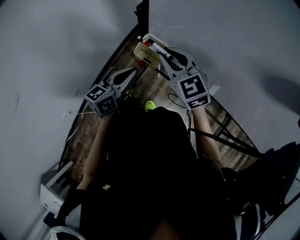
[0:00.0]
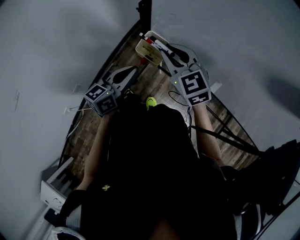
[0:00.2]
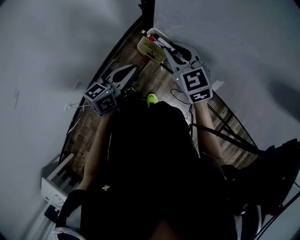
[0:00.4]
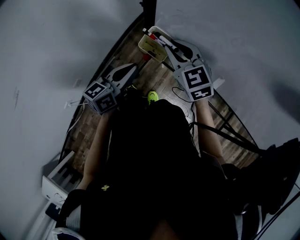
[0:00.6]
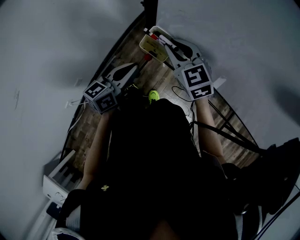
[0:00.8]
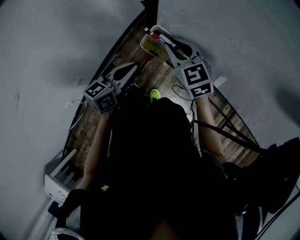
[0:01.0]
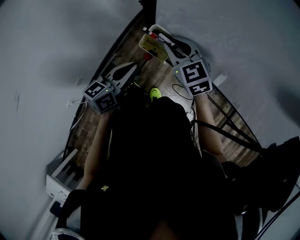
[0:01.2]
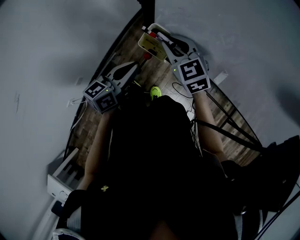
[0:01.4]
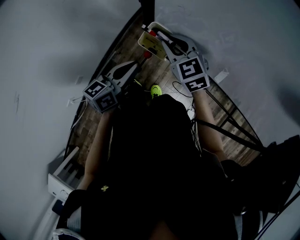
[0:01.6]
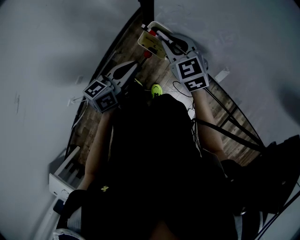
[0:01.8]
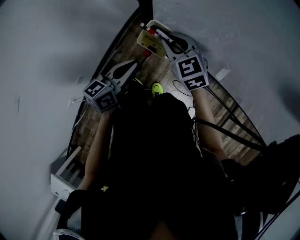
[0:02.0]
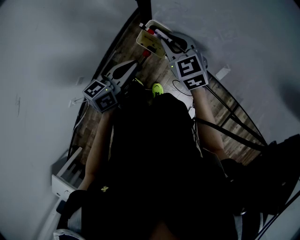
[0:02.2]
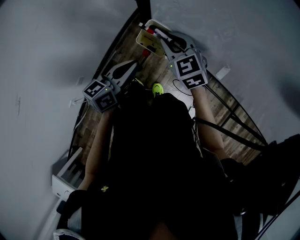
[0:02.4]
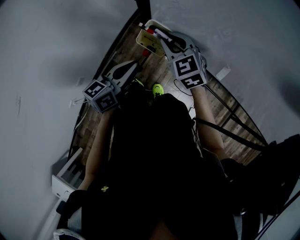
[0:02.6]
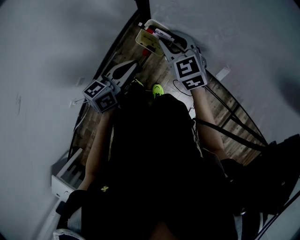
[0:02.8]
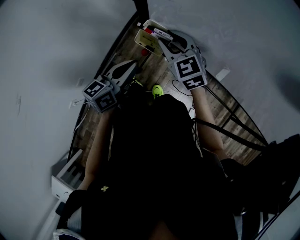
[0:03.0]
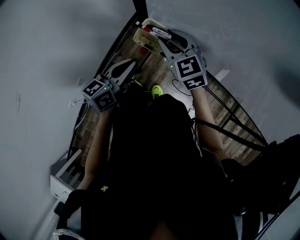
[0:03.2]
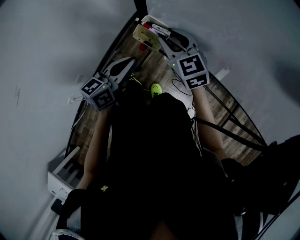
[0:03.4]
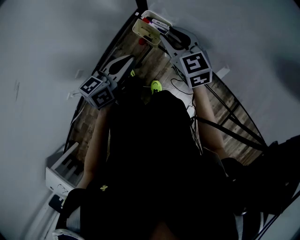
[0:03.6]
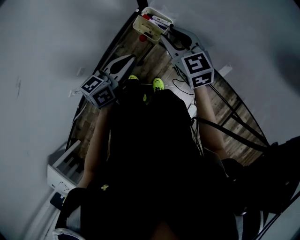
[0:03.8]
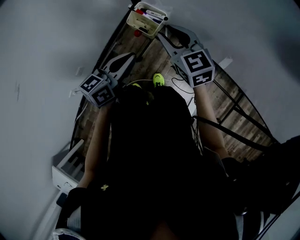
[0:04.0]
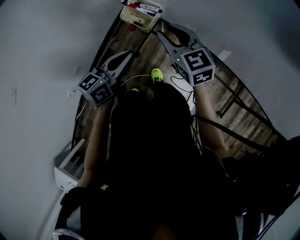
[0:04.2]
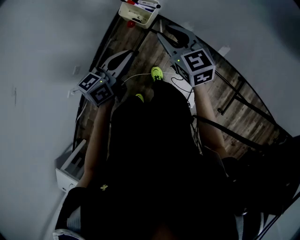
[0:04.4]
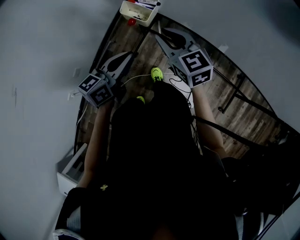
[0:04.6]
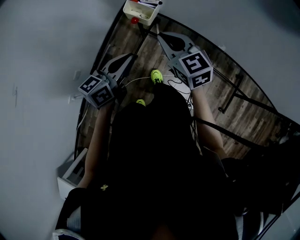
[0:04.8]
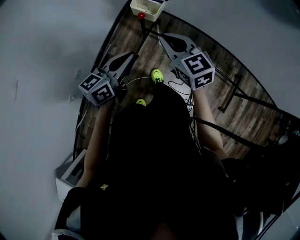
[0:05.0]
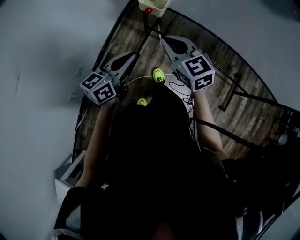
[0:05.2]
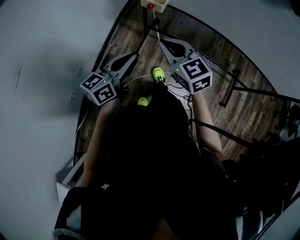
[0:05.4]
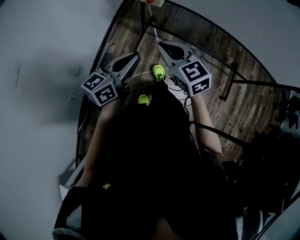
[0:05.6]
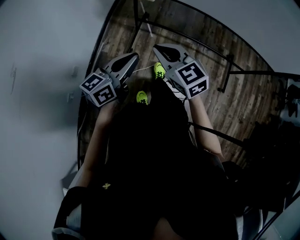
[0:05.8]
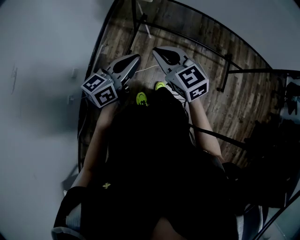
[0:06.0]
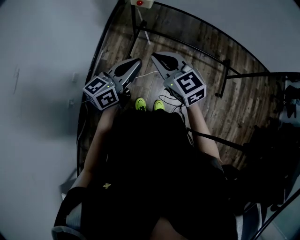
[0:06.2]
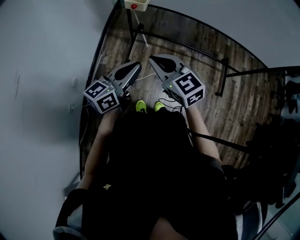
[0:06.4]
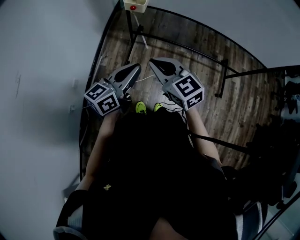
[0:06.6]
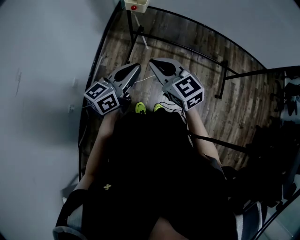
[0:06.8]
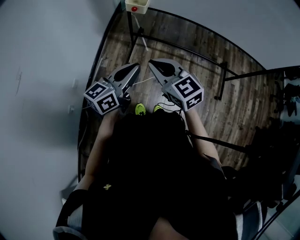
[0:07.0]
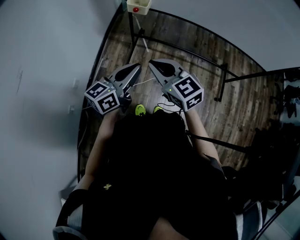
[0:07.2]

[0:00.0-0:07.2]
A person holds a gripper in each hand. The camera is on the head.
0:00.0 to 0:01.4: The right gripper moves some 5 cm.
0:01.4 to 0:02.8: The grippers move only a little.
0:02.8 to 0:04.4: The right gripper is displaced backward and to the right by about 10 cm; the left gripper heads backward, covering approximately 5 cm.
0:04.4 to 0:05.8: Both grippers move backward, roughly 25 cm. The right gripper closes its fingers.
0:05.8 to 0:07.2: The right gripper heads backward, covering approximately 5 cm.

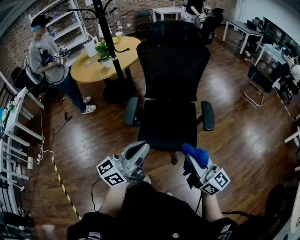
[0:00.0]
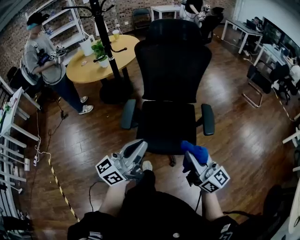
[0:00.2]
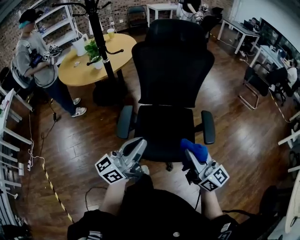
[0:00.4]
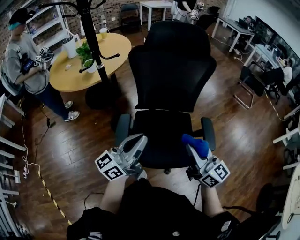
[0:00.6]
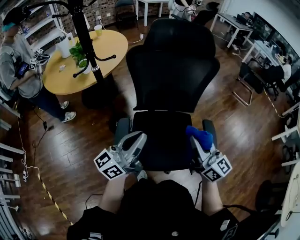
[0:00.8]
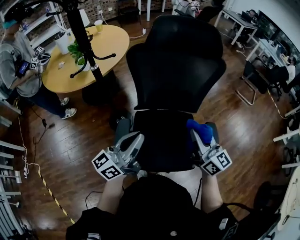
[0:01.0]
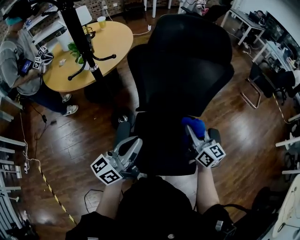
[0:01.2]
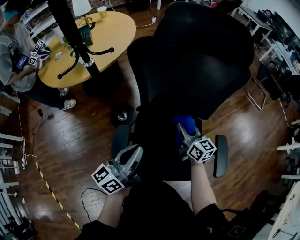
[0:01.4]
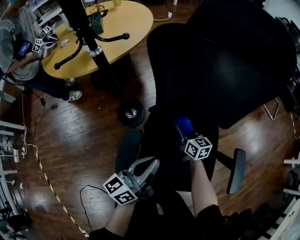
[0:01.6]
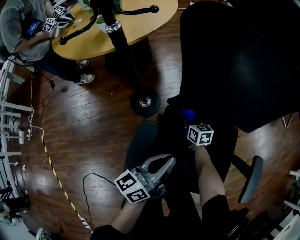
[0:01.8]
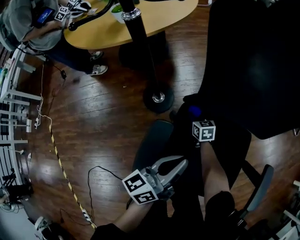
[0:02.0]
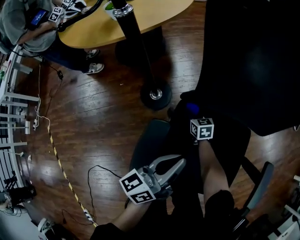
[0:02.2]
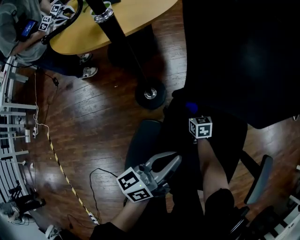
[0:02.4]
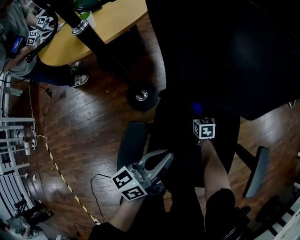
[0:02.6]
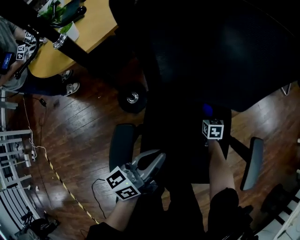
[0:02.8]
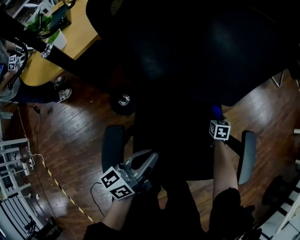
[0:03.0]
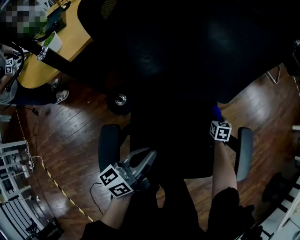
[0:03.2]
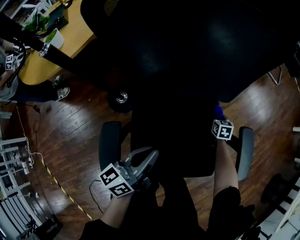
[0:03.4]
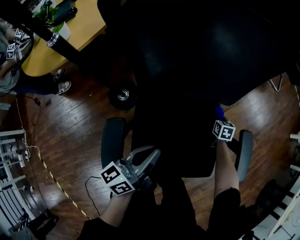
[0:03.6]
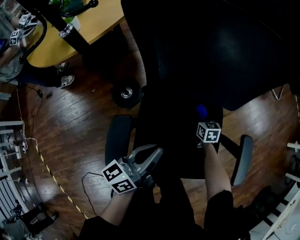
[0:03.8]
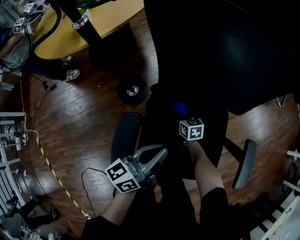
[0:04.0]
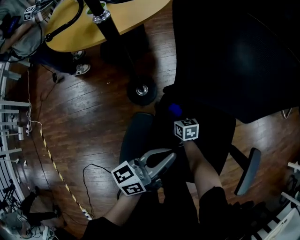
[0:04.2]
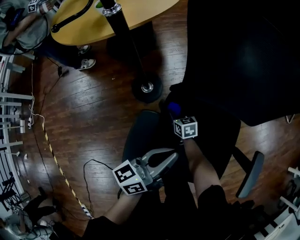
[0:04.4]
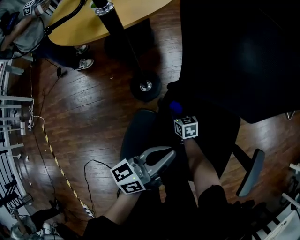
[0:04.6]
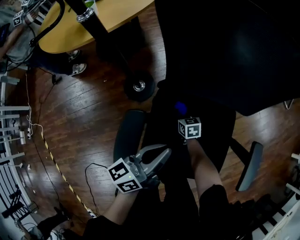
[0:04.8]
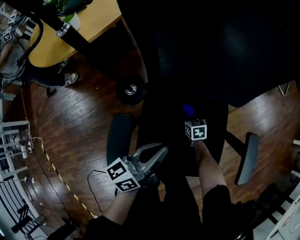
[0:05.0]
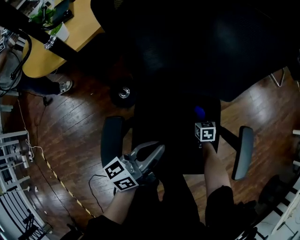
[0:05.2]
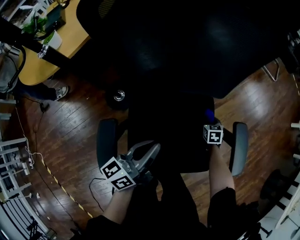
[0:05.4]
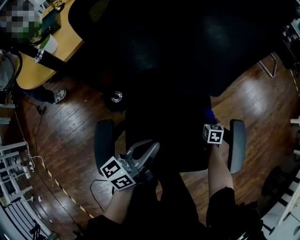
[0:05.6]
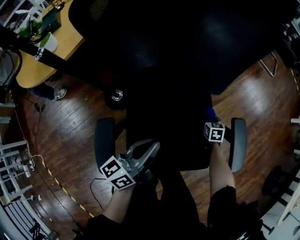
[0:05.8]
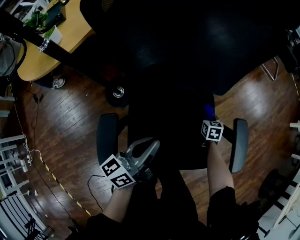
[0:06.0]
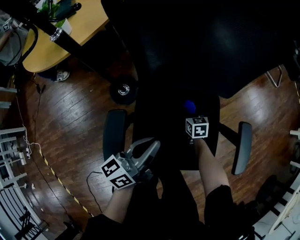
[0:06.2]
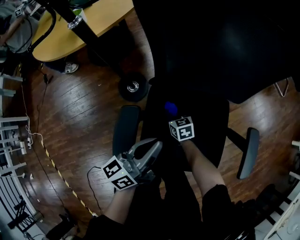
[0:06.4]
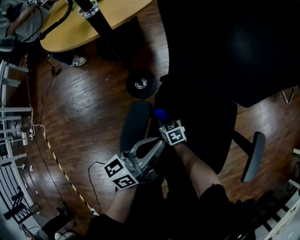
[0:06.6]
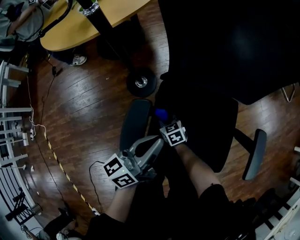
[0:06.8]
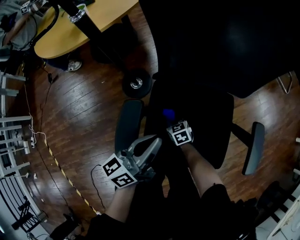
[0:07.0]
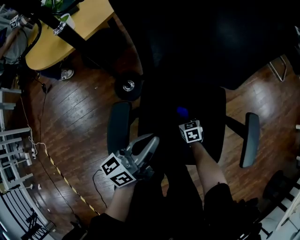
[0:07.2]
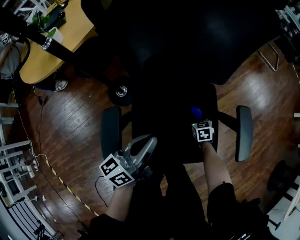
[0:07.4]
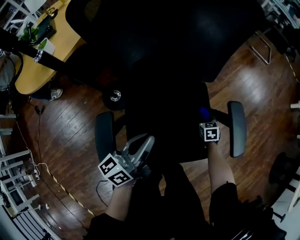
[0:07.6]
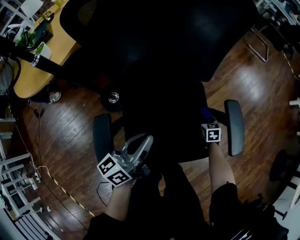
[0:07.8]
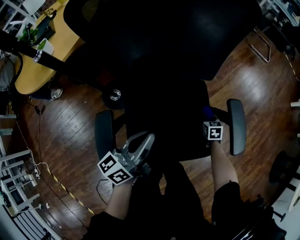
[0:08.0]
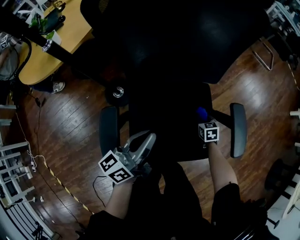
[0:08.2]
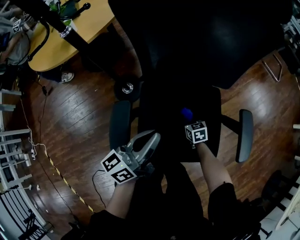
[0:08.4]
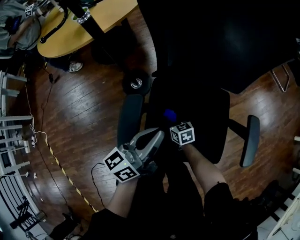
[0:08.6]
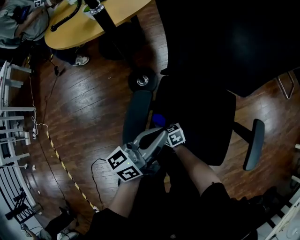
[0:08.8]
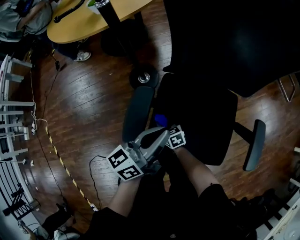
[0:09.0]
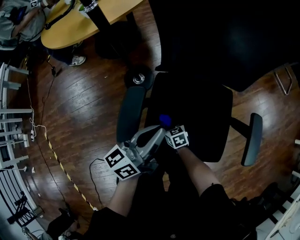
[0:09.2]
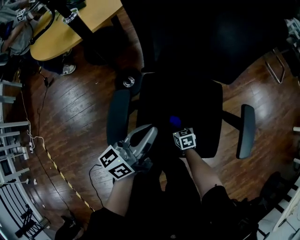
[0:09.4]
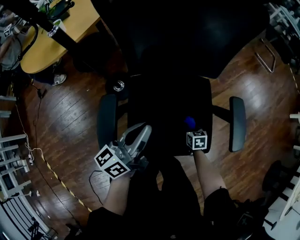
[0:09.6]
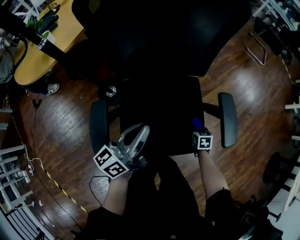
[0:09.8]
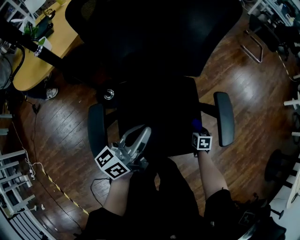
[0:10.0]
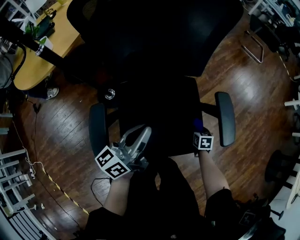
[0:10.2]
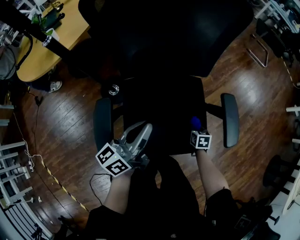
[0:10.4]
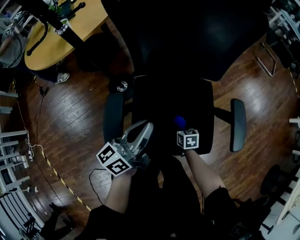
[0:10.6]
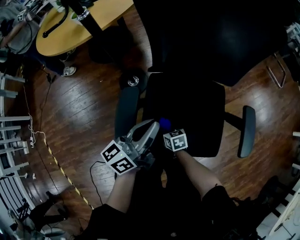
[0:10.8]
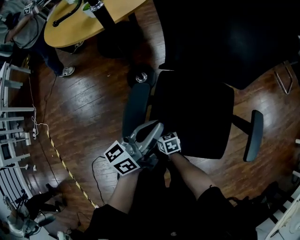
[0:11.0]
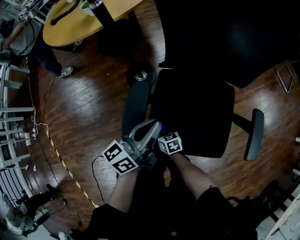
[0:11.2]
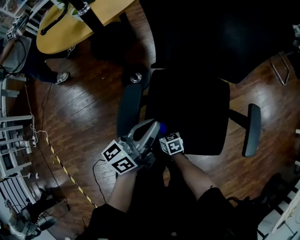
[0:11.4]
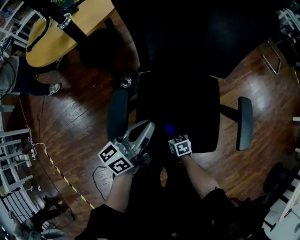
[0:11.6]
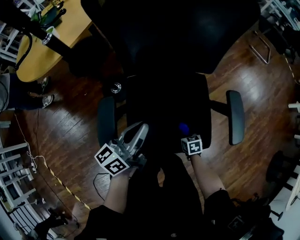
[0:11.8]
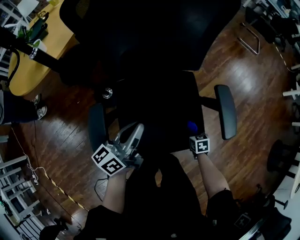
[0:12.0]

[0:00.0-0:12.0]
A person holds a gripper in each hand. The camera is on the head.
0:00.0 to 0:01.6: The left gripper moves forward and downward, some 40 cm, and turns by roughly 30 degrees, while the right gripper goes approximately 60 cm forward and downward, and points its fingers approximately 40 degrees further downward.
0:01.6 to 0:03.0: The right gripper ends up approximately 30 cm from where it was, and tips its fingers downward by some 30 degrees. Meanwhile the left gripper goes some 5 cm downward.
0:03.0 to 0:04.4: The right gripper moves roughly 40 cm, and swivels about 40 degrees.
0:04.4 to 0:06.0: The left gripper ends up roughly 10 cm from where it was, while the right gripper shifts by roughly 40 cm, and swivels approximately 40 degrees.
0:07.6 to 0:09.0: The left gripper moves about 10 cm. Meanwhile the right gripper changes place by about 40 cm, and changes its angle by about 50 degrees.
0:09.0 to 0:10.4: The right gripper changes place by roughly 35 cm, and swivels roughly 50 degrees. The left gripper ends up roughly 10 cm from where it was.

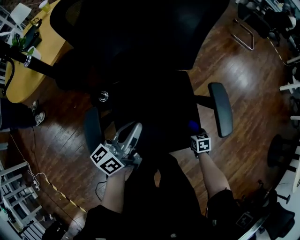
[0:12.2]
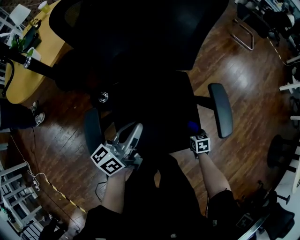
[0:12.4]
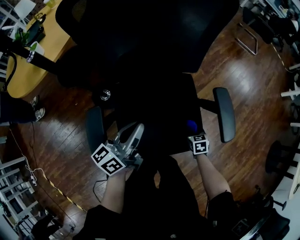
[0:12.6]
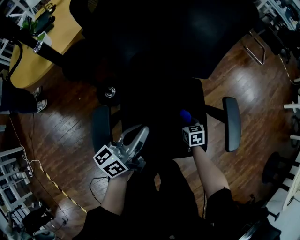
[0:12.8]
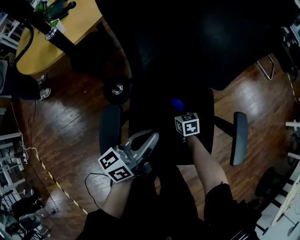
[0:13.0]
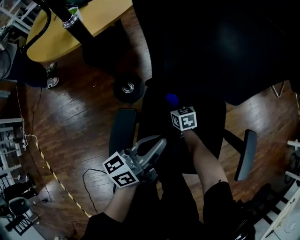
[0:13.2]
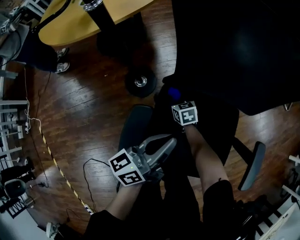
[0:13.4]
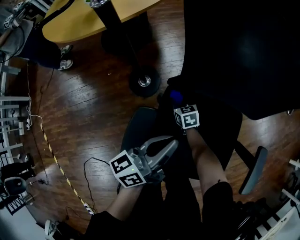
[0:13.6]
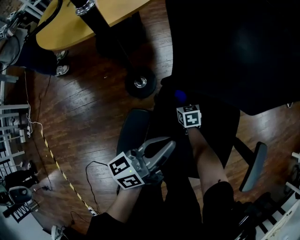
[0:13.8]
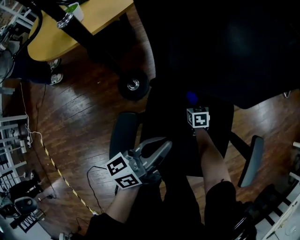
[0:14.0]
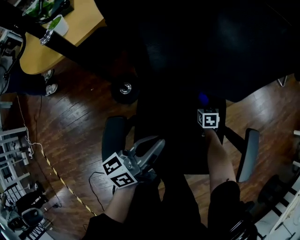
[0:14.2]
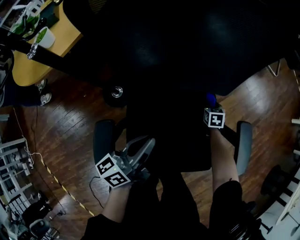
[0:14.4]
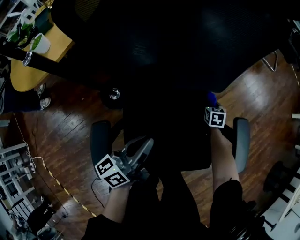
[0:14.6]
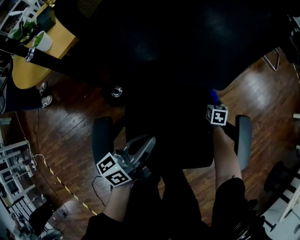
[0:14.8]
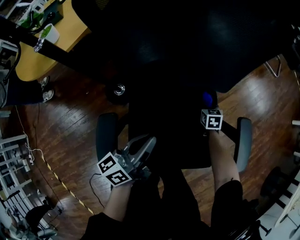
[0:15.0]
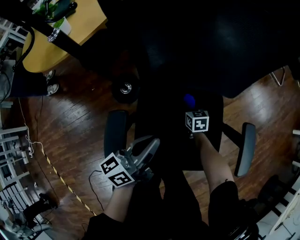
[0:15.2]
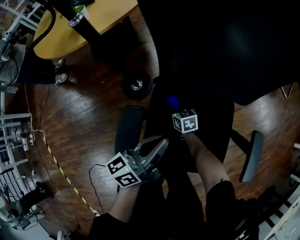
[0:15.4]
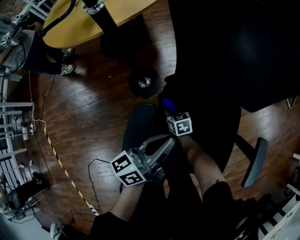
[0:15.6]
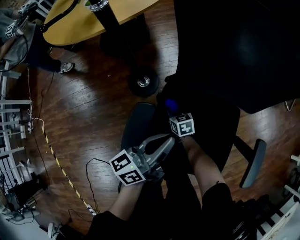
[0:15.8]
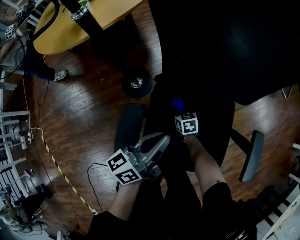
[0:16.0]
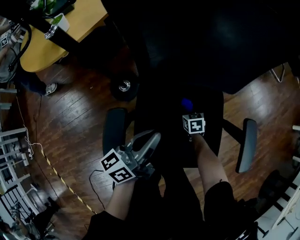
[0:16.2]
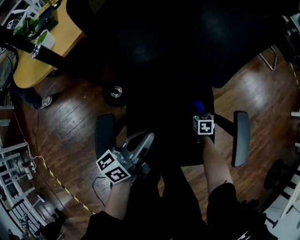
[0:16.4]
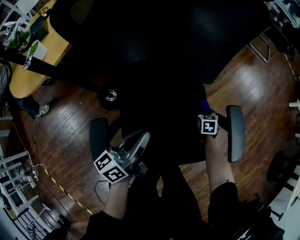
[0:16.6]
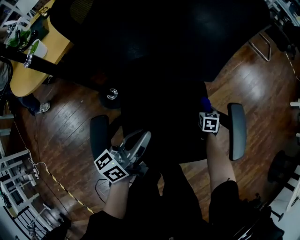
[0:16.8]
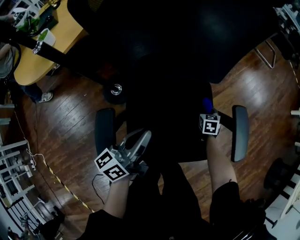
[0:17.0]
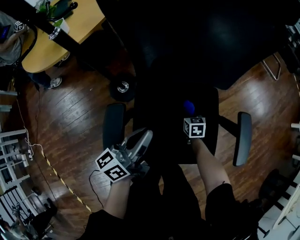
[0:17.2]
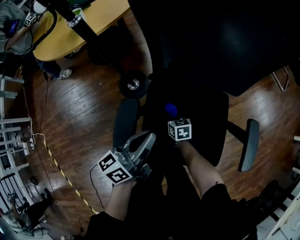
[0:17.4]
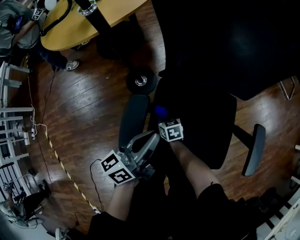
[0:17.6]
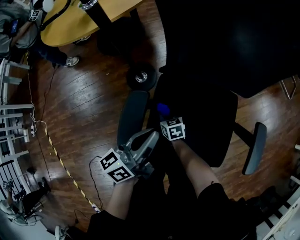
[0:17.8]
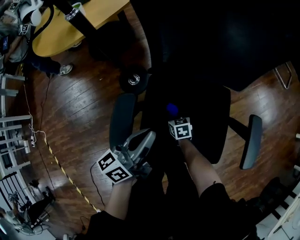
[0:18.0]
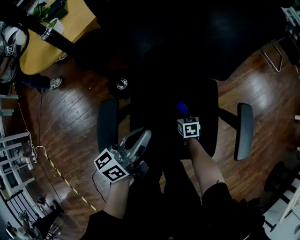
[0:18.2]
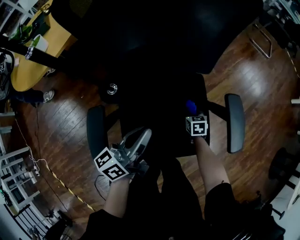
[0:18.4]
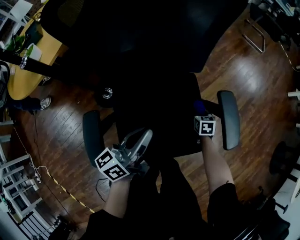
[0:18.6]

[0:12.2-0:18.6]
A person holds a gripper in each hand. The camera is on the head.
0:12.2 to 0:13.8: The right gripper changes place by roughly 40 cm, and swivels approximately 30 degrees, while the left gripper ends up about 10 cm from where it was.
0:15.4 to 0:17.0: The right gripper ends up about 30 cm from where it was, and turns by roughly 40 degrees.
0:17.0 to 0:18.6: The left gripper shifts by roughly 10 cm.
